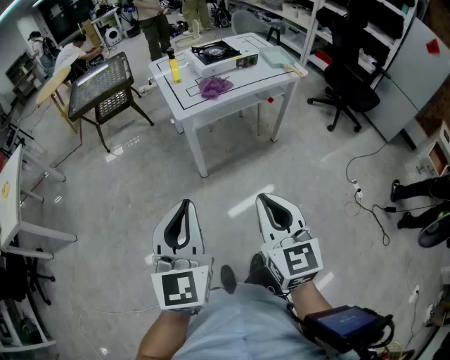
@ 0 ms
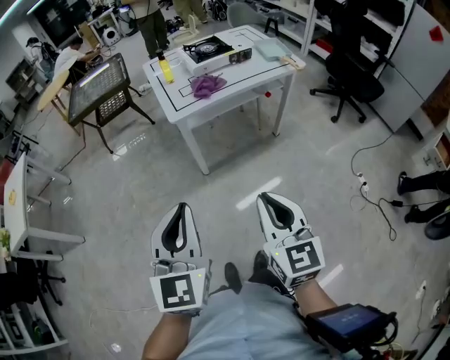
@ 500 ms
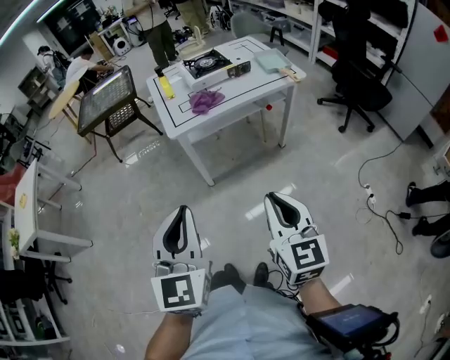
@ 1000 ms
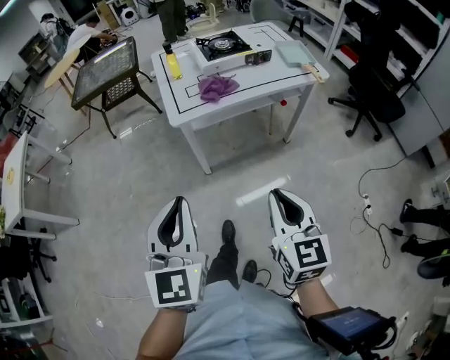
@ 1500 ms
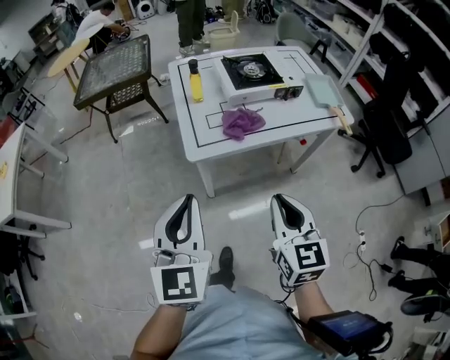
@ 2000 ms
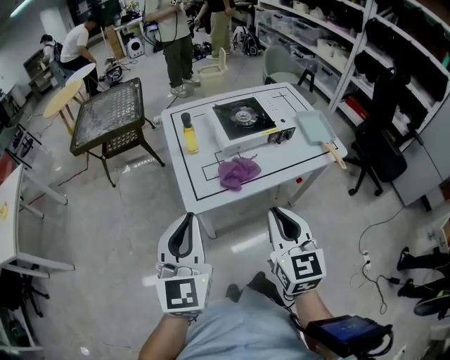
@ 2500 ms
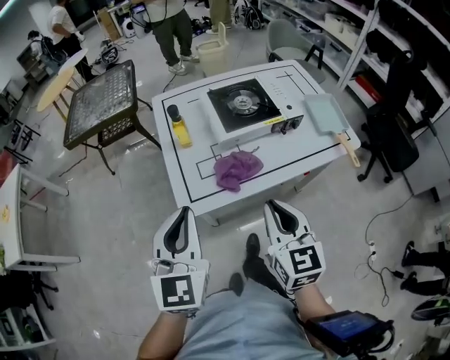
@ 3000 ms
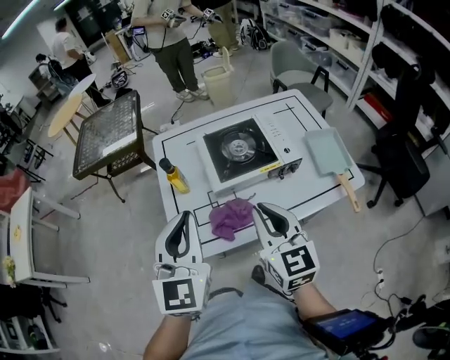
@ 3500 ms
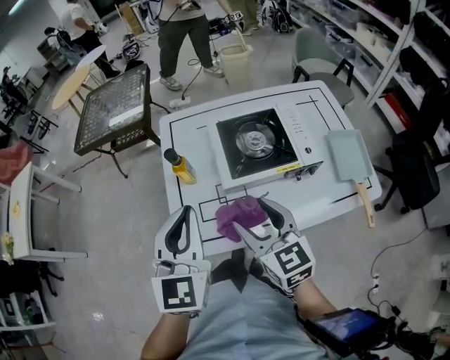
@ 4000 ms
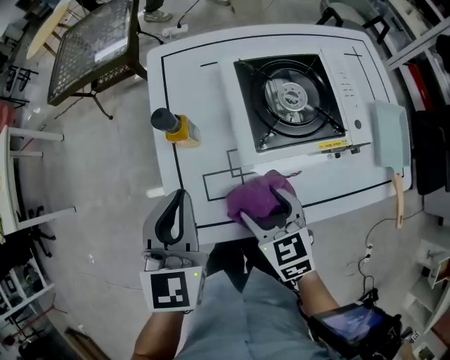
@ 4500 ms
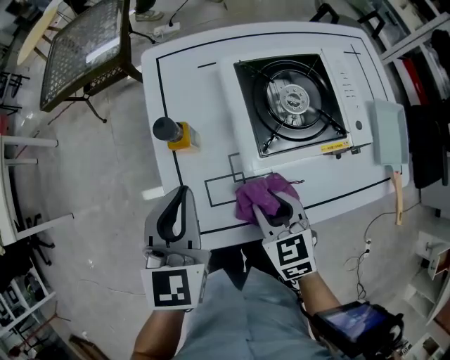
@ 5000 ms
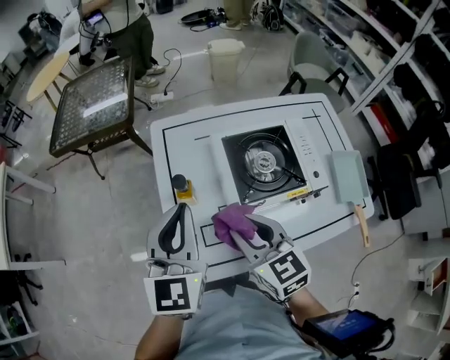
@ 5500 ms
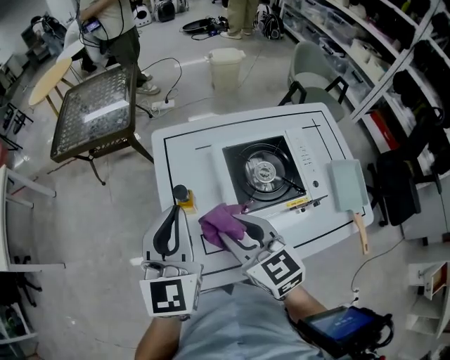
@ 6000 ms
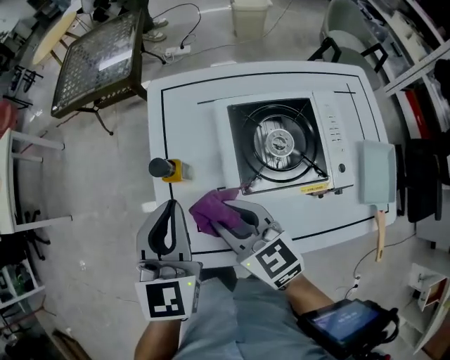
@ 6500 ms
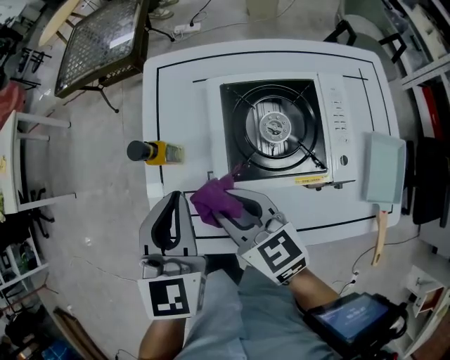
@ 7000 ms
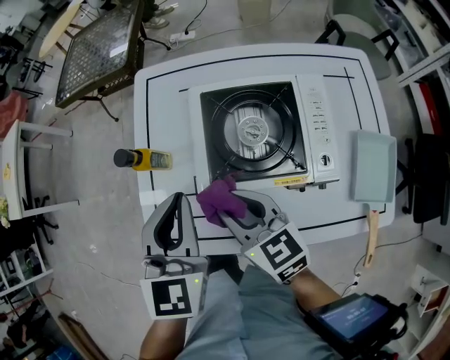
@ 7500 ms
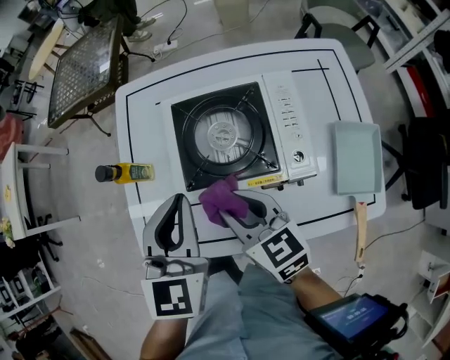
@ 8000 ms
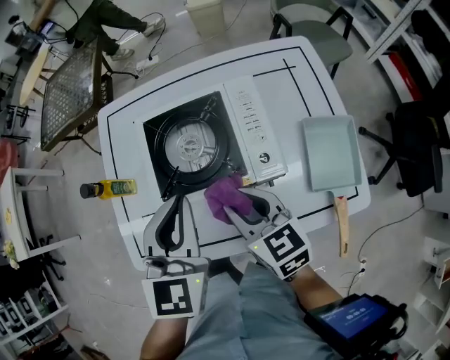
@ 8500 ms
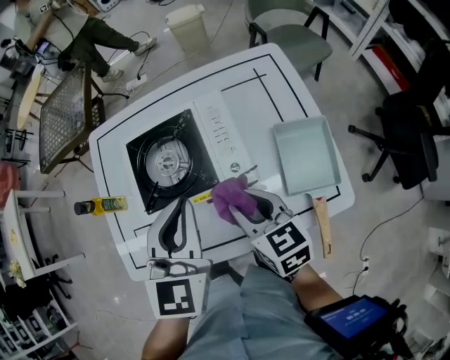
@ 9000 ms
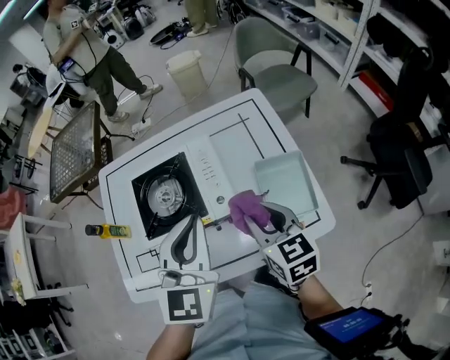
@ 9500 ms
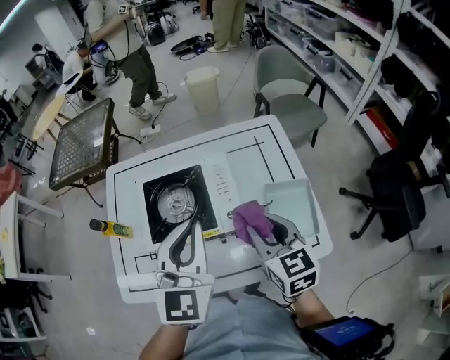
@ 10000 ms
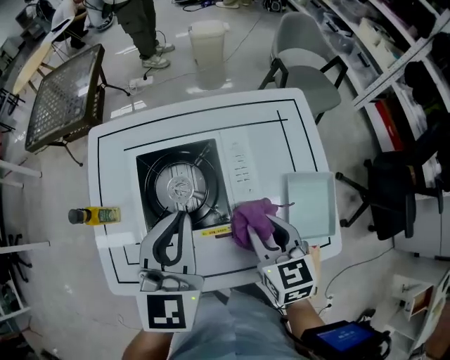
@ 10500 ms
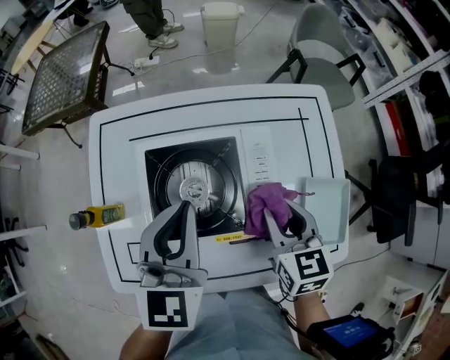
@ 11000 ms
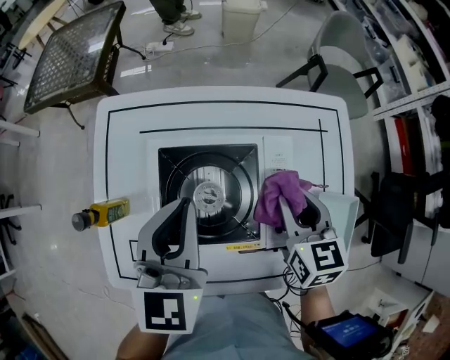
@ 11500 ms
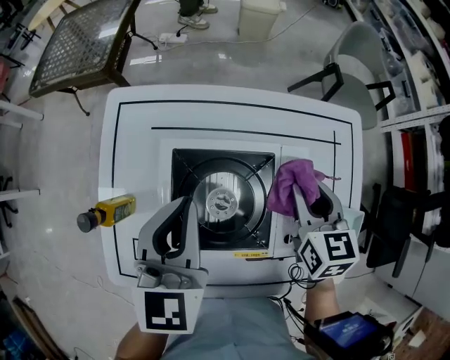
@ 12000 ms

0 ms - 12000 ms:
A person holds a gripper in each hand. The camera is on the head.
0 ms - 2000 ms: Both grippers travel together forward, some 35 cm.
2000 ms - 4000 ms: Both grippers move forward, some 35 cm. The right gripper rotates some 20 degrees, and opens up.
4000 ms - 6000 ms: The left gripper moves forward, approximately 15 cm; the right gripper moves forward and to the left, roughly 15 cm, reaches some 20 cm downward, then returns, and closes up.
6000 ms - 8000 ms: The grippers both shift to the right and downward by some 20 cm.
8000 ms - 10000 ms: The right gripper goes some 25 cm to the right, and changes its angle by some 20 degrees. Meanwhile the left gripper heads to the right and upward, covering some 20 cm.
10000 ms - 12000 ms: The right gripper goes roughly 25 cm forward and downward. The left gripper goes approximately 25 cm to the left, forward and downward, and changes its angle by roughly 20 degrees.

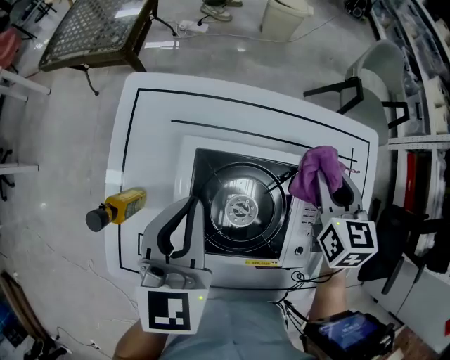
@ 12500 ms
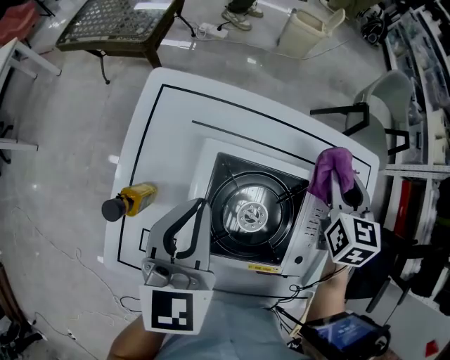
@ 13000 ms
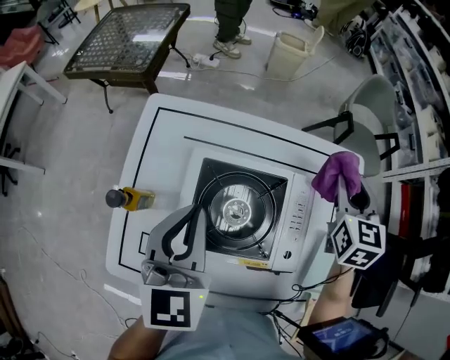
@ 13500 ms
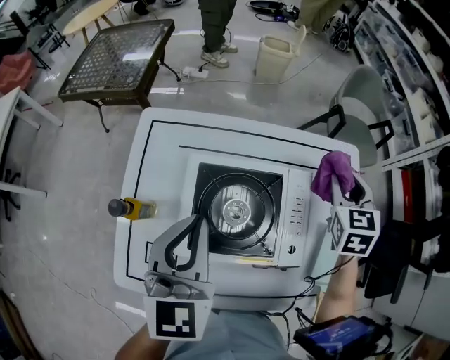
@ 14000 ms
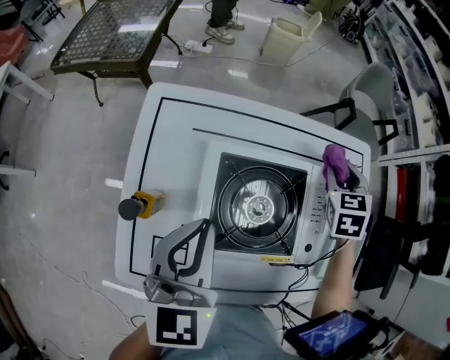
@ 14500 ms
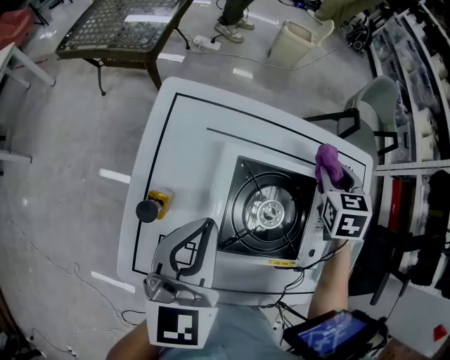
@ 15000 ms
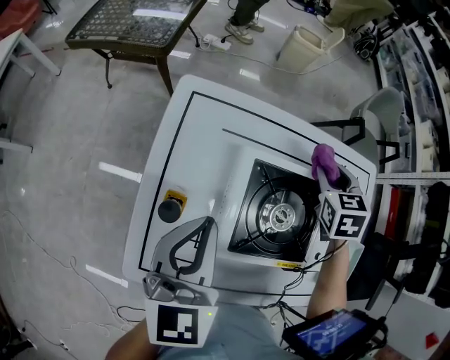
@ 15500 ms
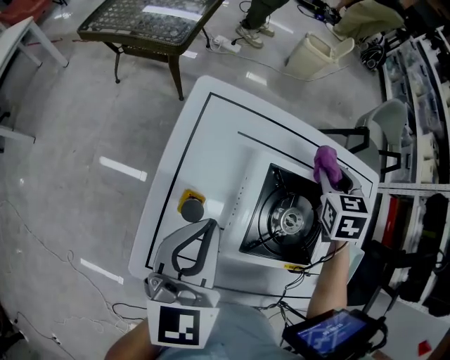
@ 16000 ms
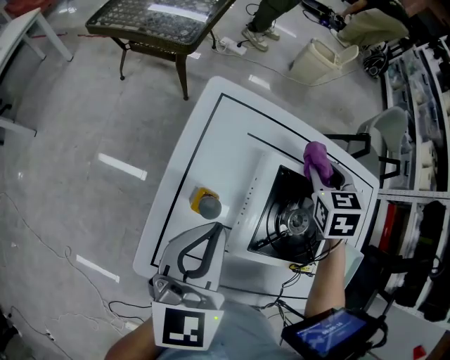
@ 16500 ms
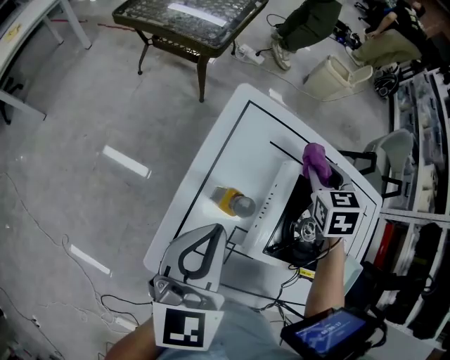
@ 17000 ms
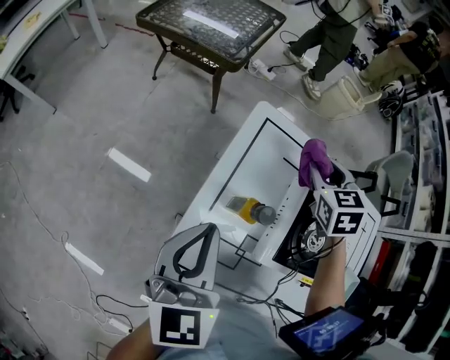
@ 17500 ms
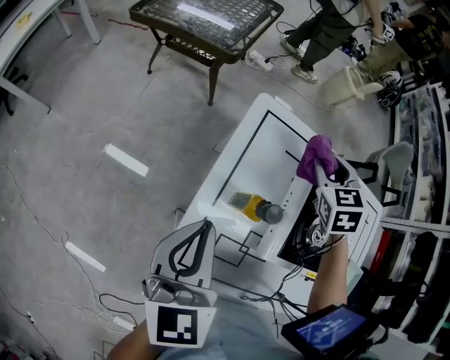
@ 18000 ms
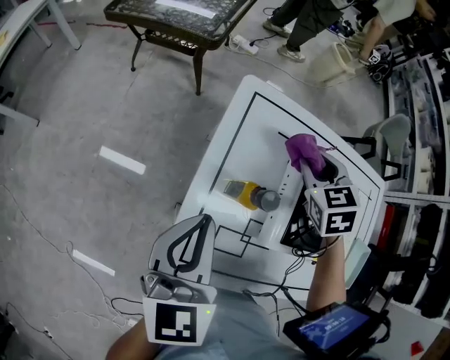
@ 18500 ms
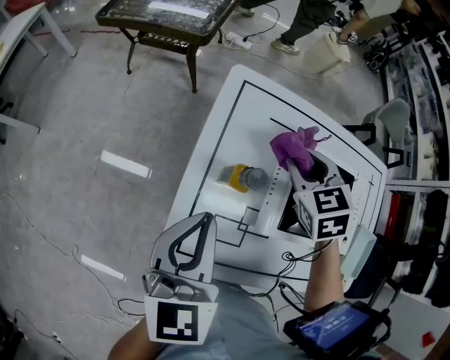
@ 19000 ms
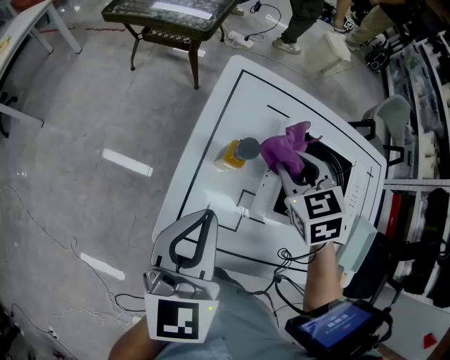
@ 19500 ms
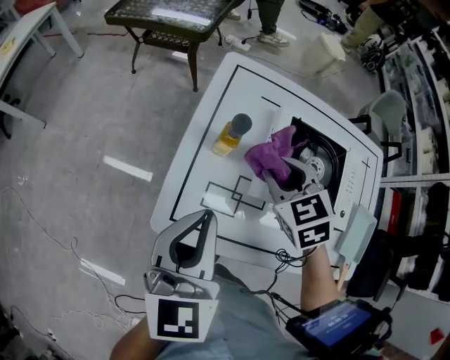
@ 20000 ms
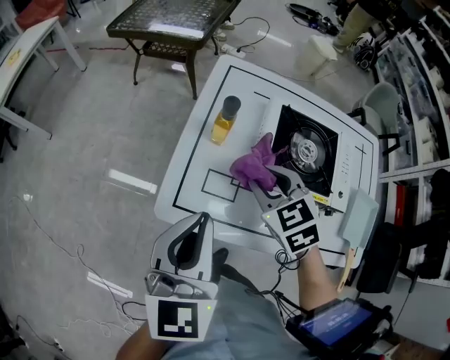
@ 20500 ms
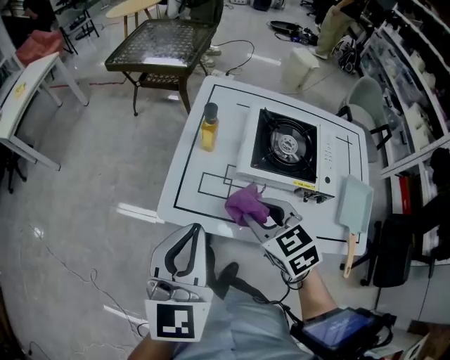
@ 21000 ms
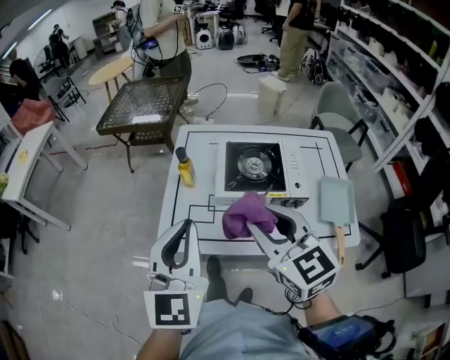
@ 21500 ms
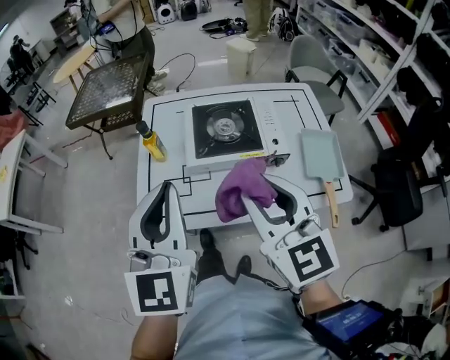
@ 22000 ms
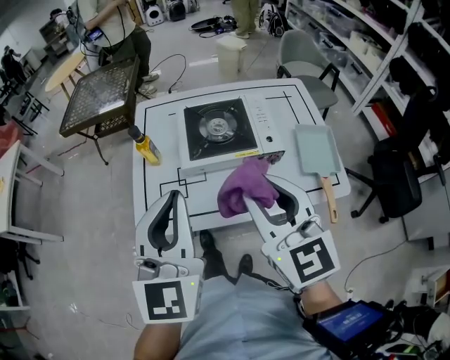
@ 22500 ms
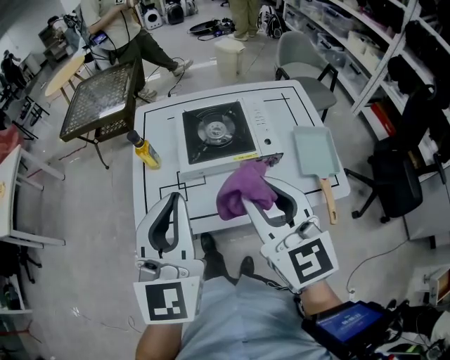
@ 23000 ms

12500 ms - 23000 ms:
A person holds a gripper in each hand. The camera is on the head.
12500 ms - 14500 ms: The right gripper goes upward and returns, roughly 10 cm each way, and turns by roughly 30 degrees. The left gripper travels backward by about 5 cm.
14500 ms - 16500 ms: The left gripper goes about 10 cm to the left; the right gripper goes about 25 cm to the left.
16500 ms - 19000 ms: The right gripper heads to the left and backward, covering approximately 15 cm. The left gripper shifts some 10 cm to the left and backward.
19000 ms - 21000 ms: The two grippers go some 30 cm backward.
21000 ms - 23000 ms: The right gripper is displaced upward, to the right and backward by approximately 25 cm, and tilts its fingers approximately 40 degrees upward. The left gripper heads to the right and upward, covering some 15 cm.

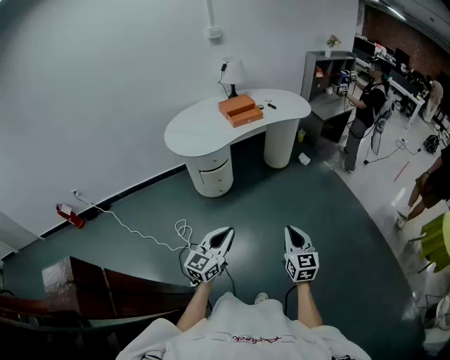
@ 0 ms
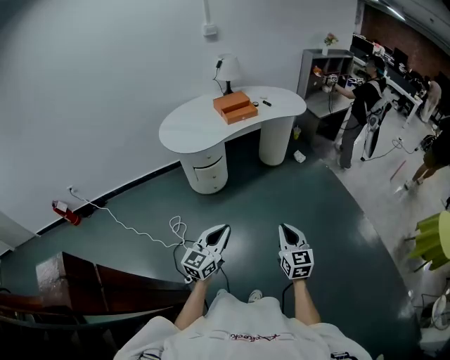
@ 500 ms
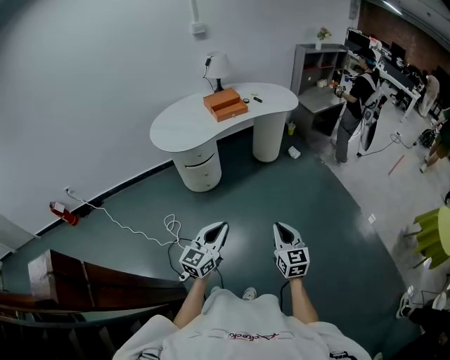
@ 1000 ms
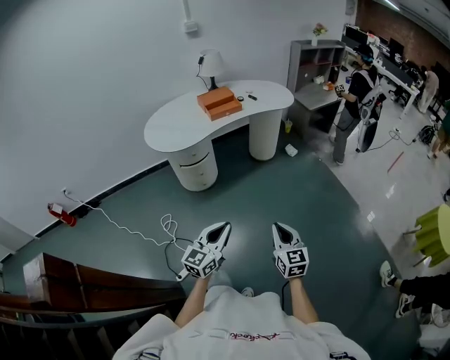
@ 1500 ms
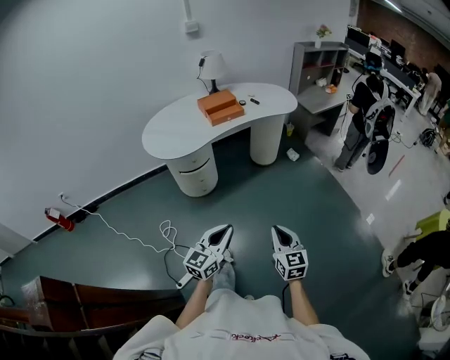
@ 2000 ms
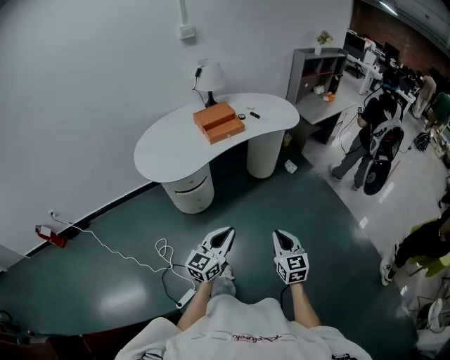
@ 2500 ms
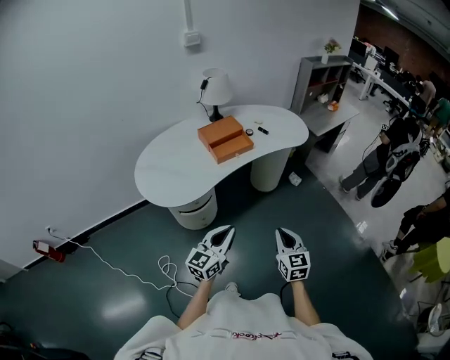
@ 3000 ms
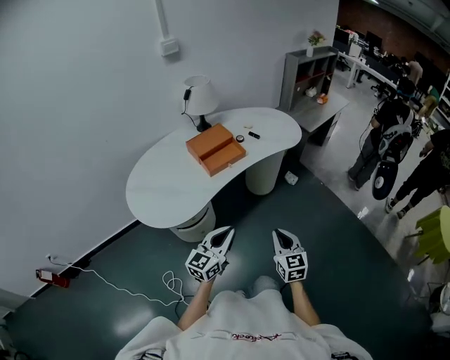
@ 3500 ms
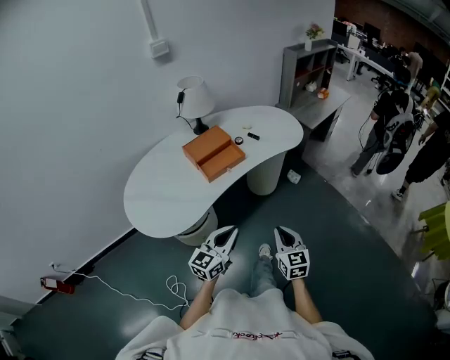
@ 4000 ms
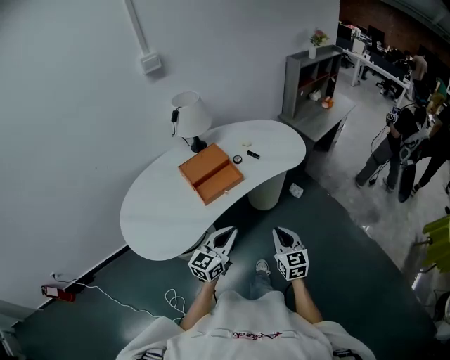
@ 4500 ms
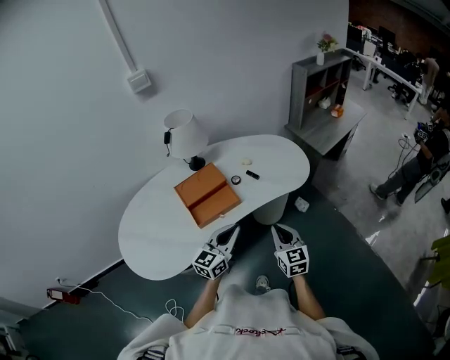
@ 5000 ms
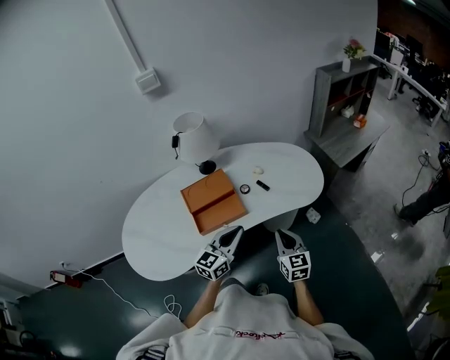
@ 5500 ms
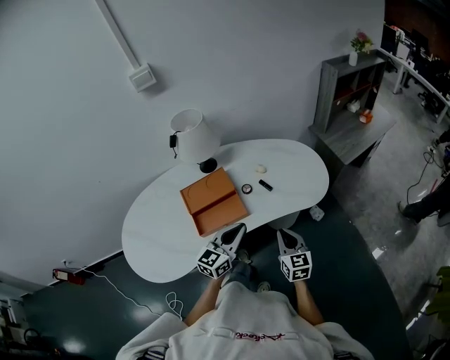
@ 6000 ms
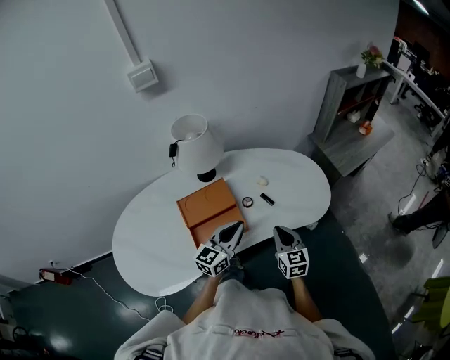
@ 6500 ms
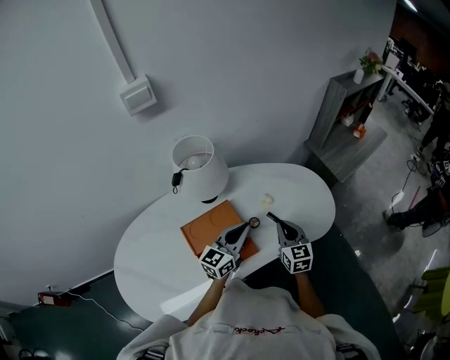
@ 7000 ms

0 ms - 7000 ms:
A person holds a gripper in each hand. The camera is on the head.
0 ms - 2000 ms: Both grippers travel together forward and to the right, some 10 cm.
2000 ms - 3500 ms: Both grippers move forward and to the left, about 35 cm.
3500 ms - 5000 ms: Both grippers travel together forward, approximately 30 cm.
5000 ms - 7000 ms: Both grippers travel together forward, roughly 30 cm.
